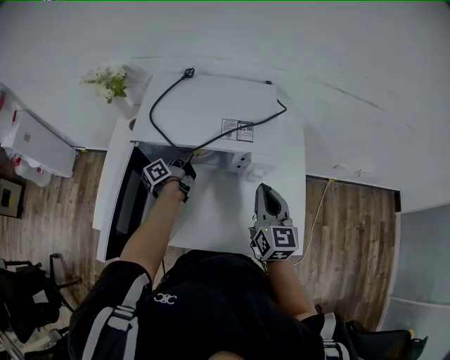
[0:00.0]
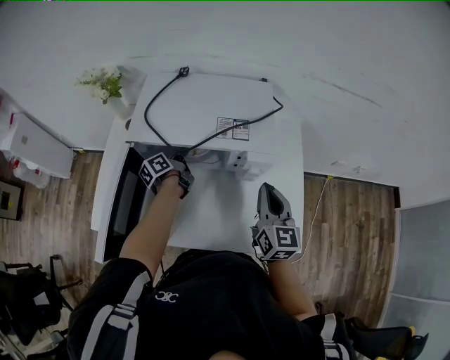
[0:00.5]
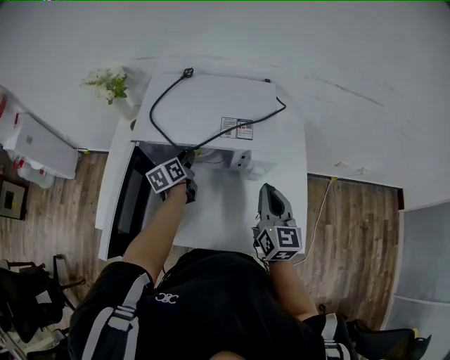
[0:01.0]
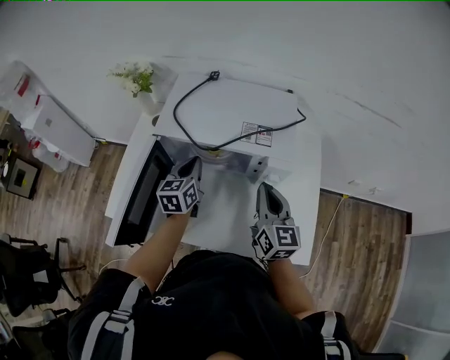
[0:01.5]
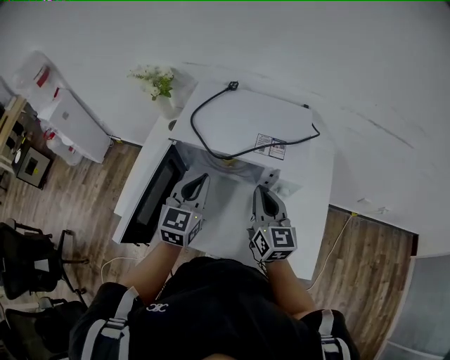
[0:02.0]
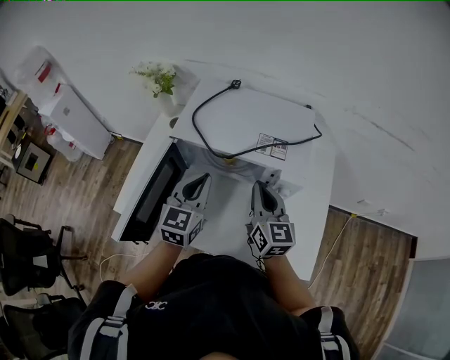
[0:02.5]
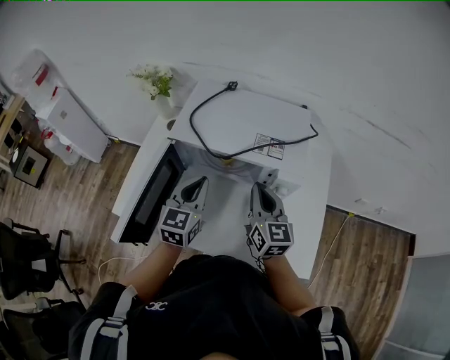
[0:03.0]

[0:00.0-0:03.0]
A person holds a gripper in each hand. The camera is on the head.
0:00.0 to 0:01.5: The left gripper shifts approximately 10 cm upward and backward, rotates around the line of its fingers by some 60 degrees, clockwise from behind, and closes up.
0:01.5 to 0:03.0: The left gripper goes roughly 10 cm backward and upward. Meanwhile the right gripper shifts by approximately 5 cm.

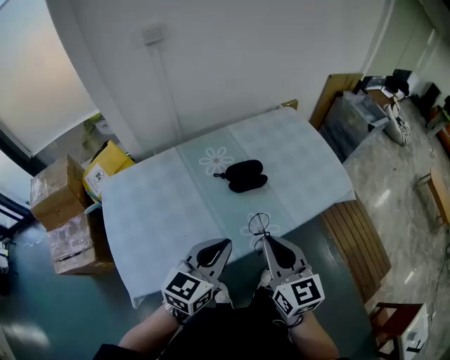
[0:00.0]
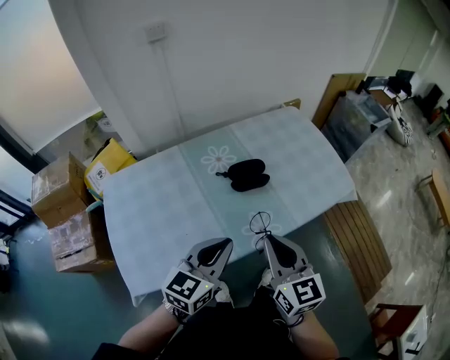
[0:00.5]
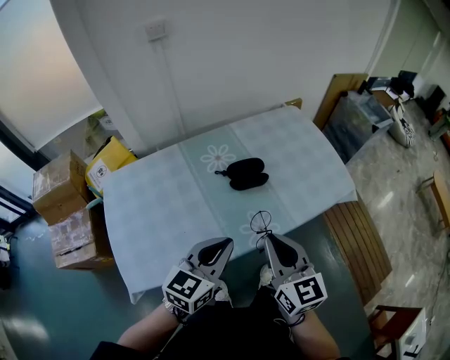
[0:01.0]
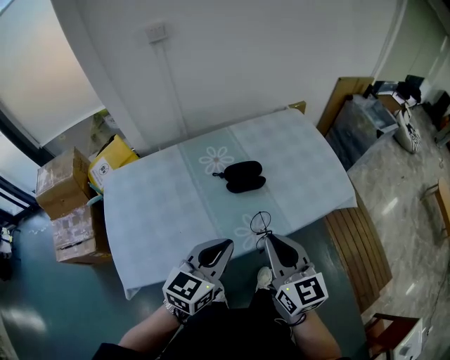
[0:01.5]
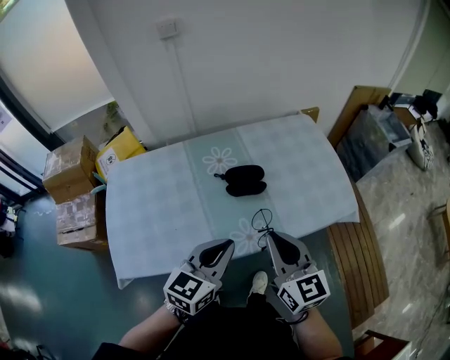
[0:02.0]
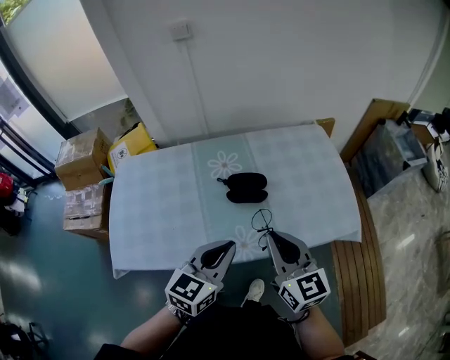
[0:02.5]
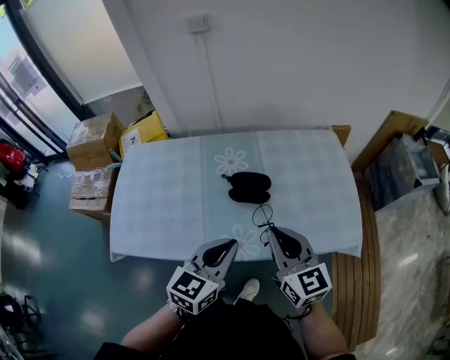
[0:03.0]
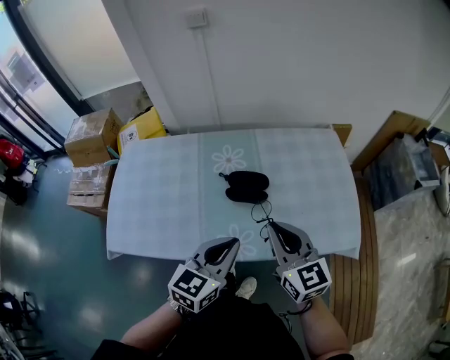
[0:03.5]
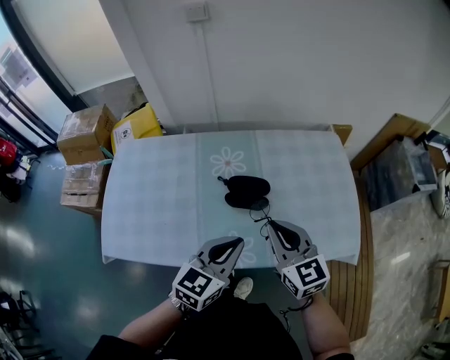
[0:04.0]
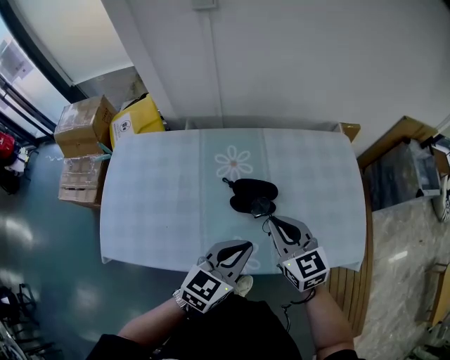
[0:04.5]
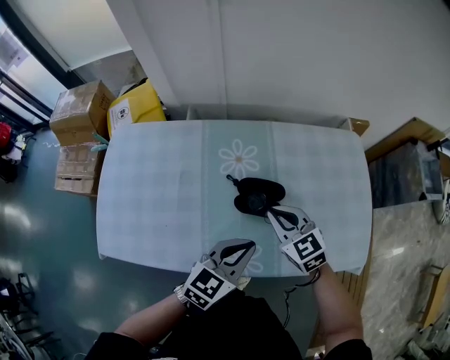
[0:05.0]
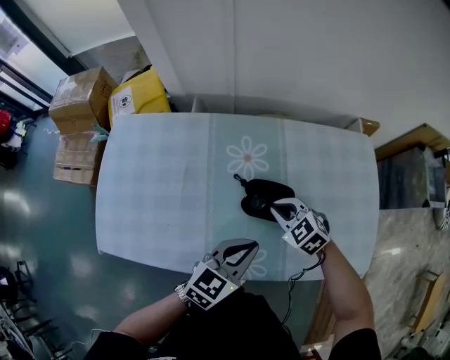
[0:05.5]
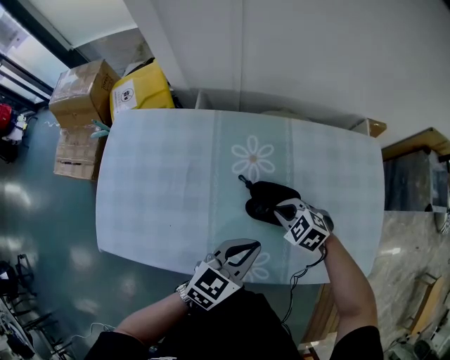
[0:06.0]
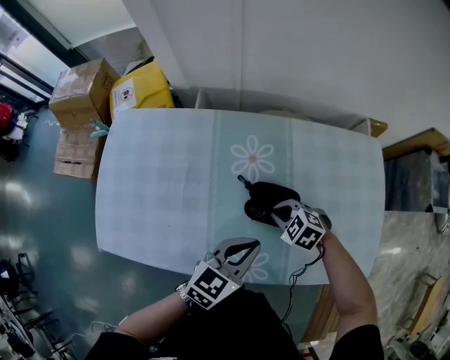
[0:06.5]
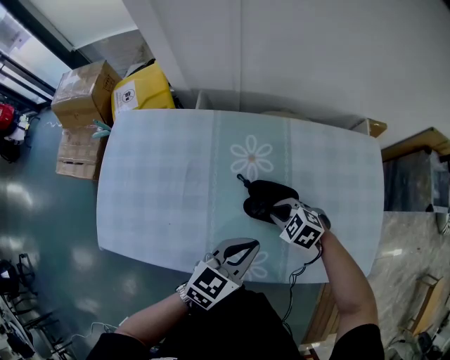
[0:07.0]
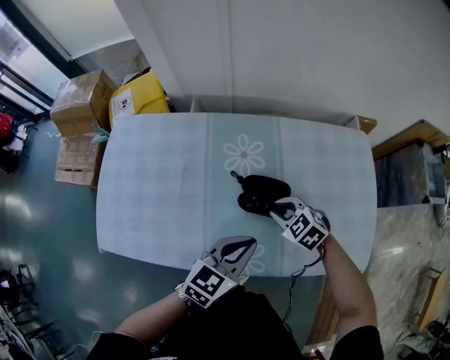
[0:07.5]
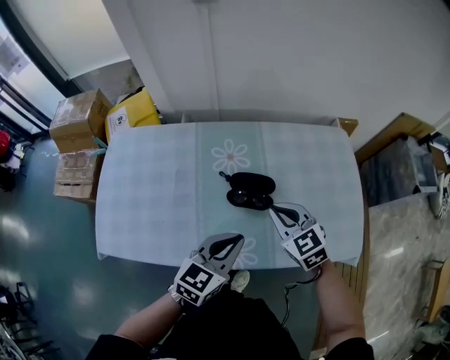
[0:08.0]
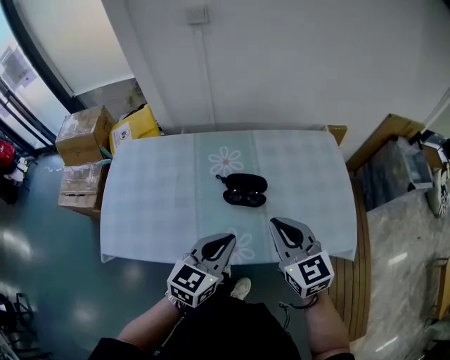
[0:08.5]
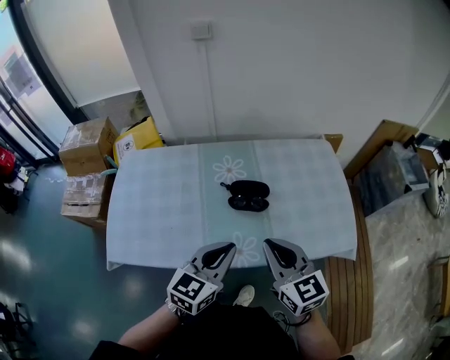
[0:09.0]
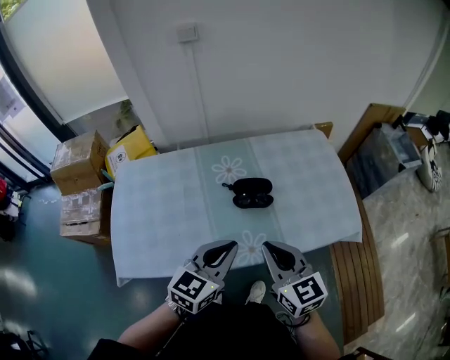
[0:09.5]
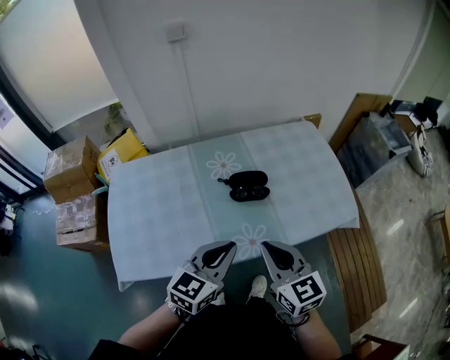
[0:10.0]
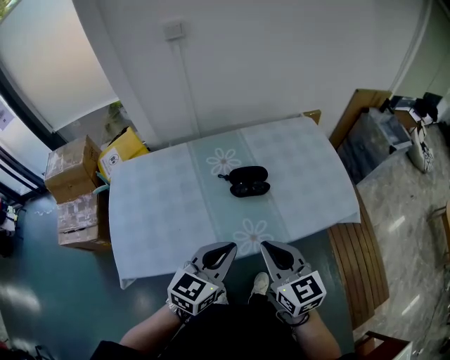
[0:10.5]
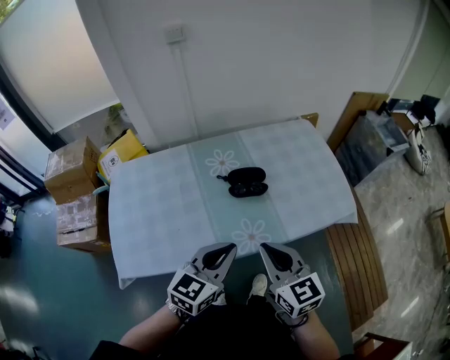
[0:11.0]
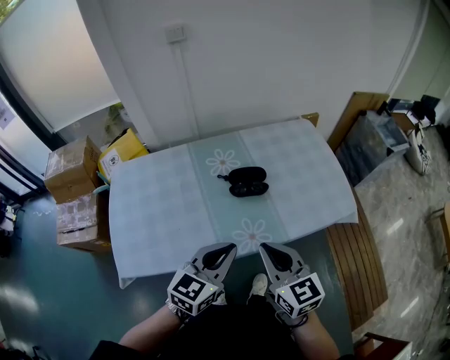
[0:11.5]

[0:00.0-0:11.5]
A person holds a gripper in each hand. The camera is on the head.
0:00.0 to 0:02.0: The grippers both shift to the right by about 5 cm.
0:02.0 to 0:04.0: The right gripper goes approximately 10 cm forward, and changes its angle by roughly 20 degrees. The left gripper travels forward and to the right by some 10 cm.
0:04.0 to 0:06.0: The left gripper travels forward and downward by approximately 10 cm. The right gripper shifts approximately 25 cm downward and forward, and points its fingers some 40 degrees further downward.
0:06.0 to 0:07.5: The grippers stay close to where they were, moving slightly.
0:07.5 to 0:09.5: The left gripper shifts approximately 15 cm backward, upward and to the left, while the right gripper heads upward and backward, covering approximately 30 cm, and points its fingers roughly 40 degrees further upward.
0:09.5 to 0:11.5: The two grippers go approximately 5 cm backward.

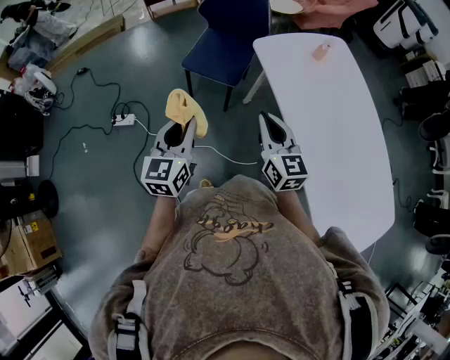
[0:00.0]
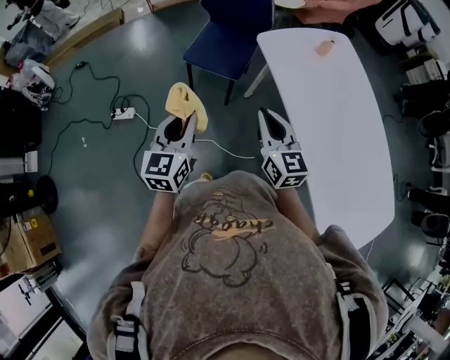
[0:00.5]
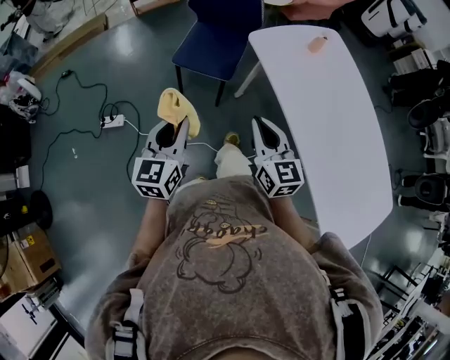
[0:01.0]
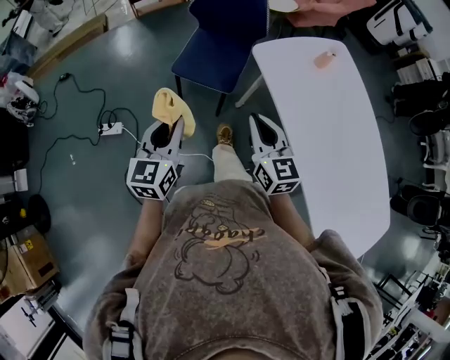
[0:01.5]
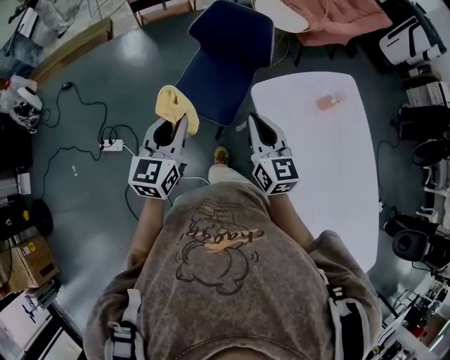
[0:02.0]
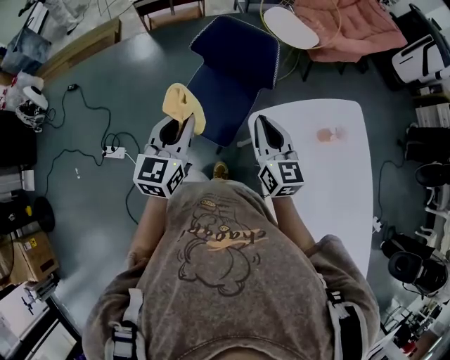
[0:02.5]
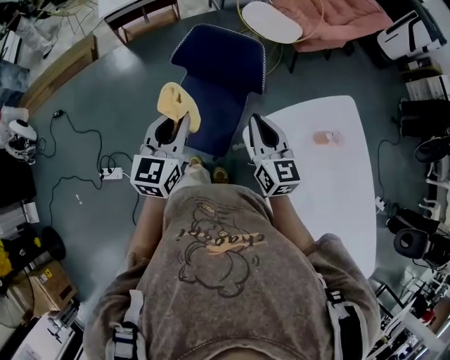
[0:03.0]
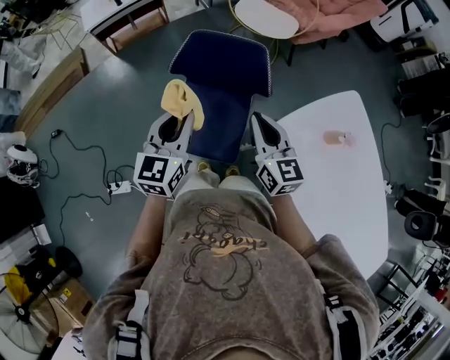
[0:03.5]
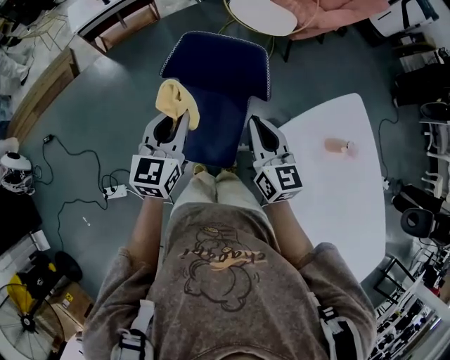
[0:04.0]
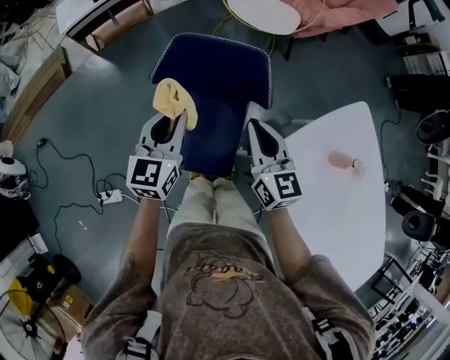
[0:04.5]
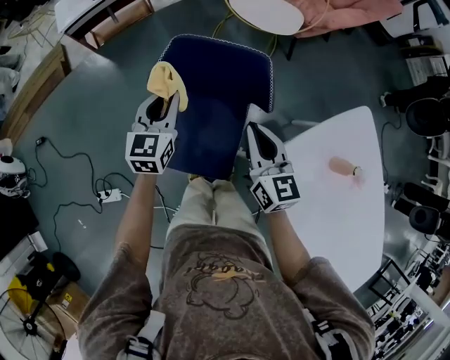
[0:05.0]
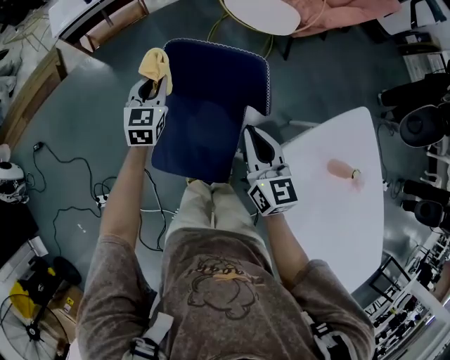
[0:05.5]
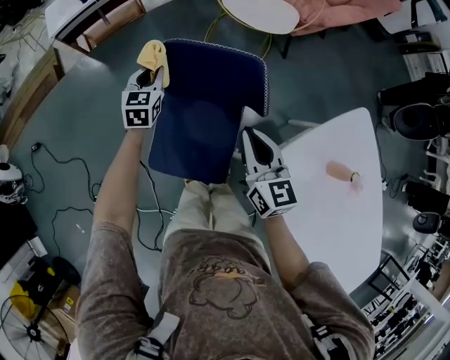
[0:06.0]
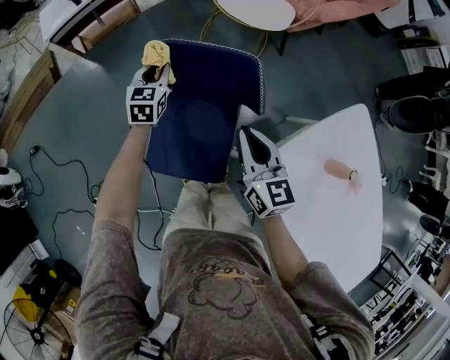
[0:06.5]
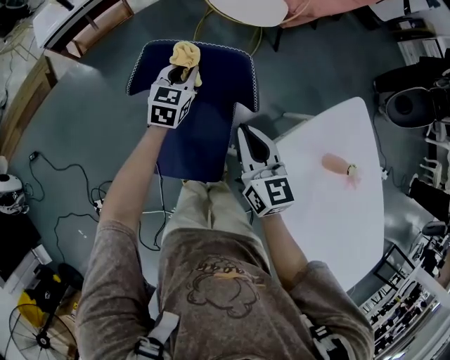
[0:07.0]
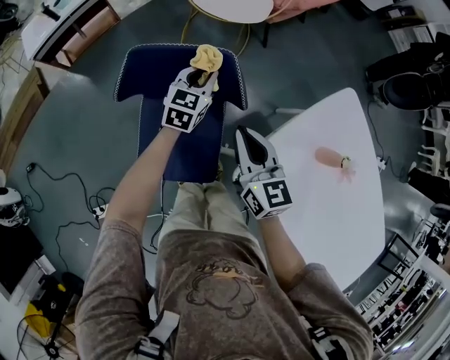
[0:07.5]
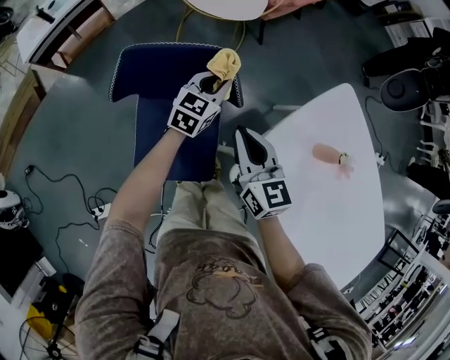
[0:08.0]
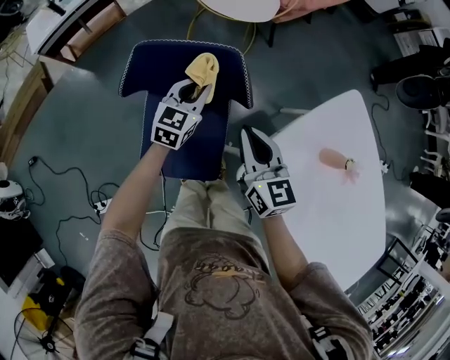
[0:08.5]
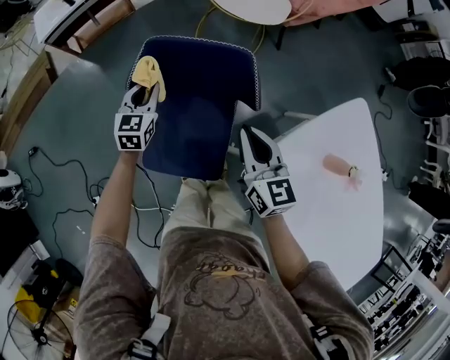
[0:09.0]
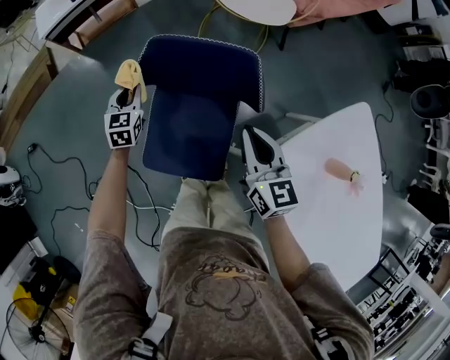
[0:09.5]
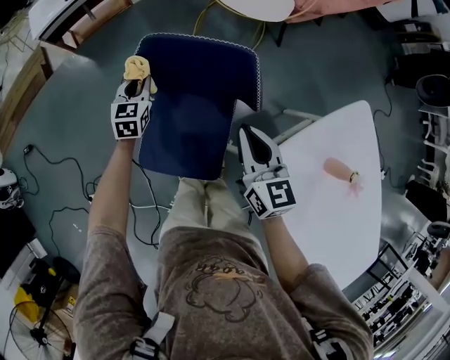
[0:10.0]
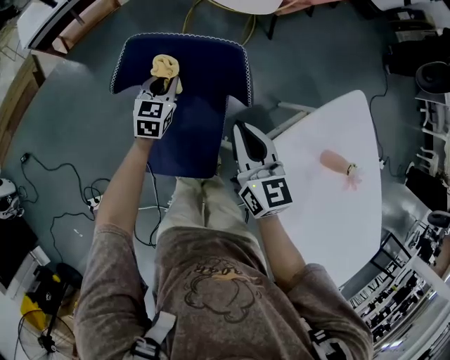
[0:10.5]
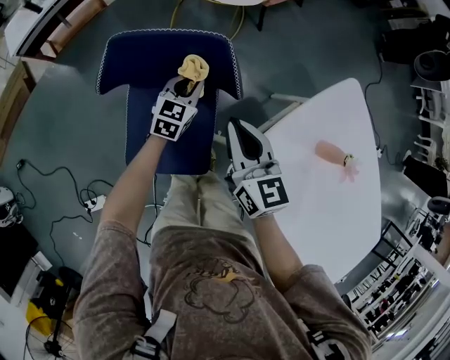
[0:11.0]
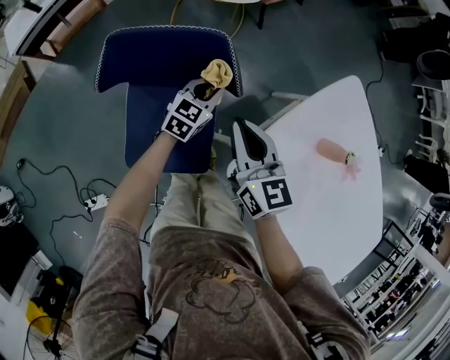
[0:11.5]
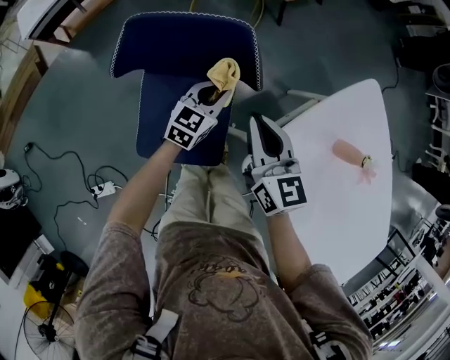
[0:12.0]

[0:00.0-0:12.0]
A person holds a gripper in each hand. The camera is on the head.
0:00.0 to 0:02.0: Both grippers move forward, some 30 cm.
0:02.0 to 0:04.0: Both grippers move forward, approximately 30 cm.
0:04.0 to 0:06.0: The right gripper heads forward and downward, covering approximately 10 cm, while the left gripper shifts about 30 cm forward and downward.
0:06.0 to 0:08.0: The left gripper travels to the right by approximately 30 cm, and swivels some 40 degrees. The right gripper is displaced to the right by roughly 5 cm.
0:08.0 to 0:10.0: The left gripper ends up some 30 cm from where it was, and rotates approximately 40 degrees, while the right gripper changes place by about 5 cm.
0:10.0 to 0:12.0: The left gripper goes roughly 25 cm to the right, and swivels roughly 30 degrees.
